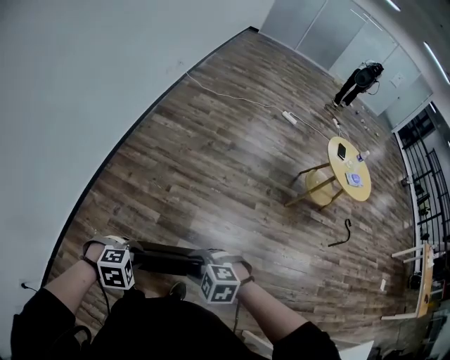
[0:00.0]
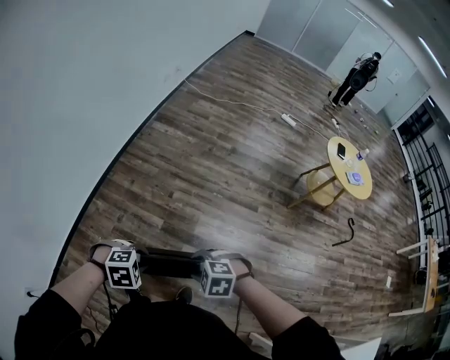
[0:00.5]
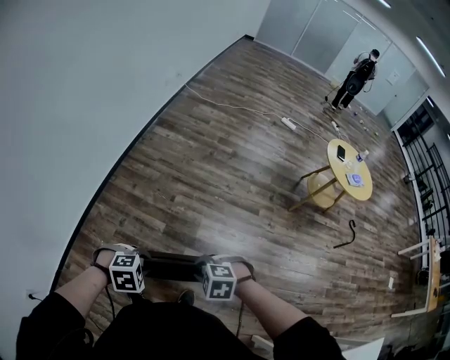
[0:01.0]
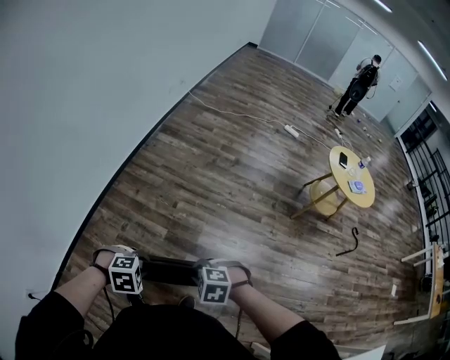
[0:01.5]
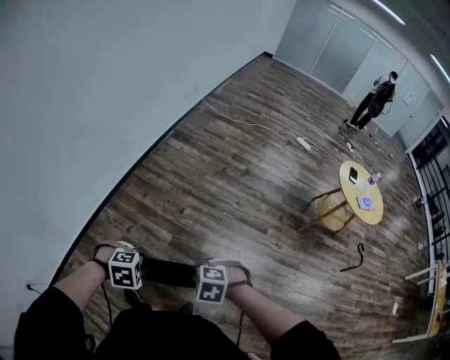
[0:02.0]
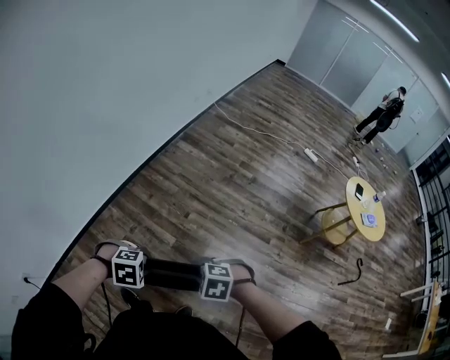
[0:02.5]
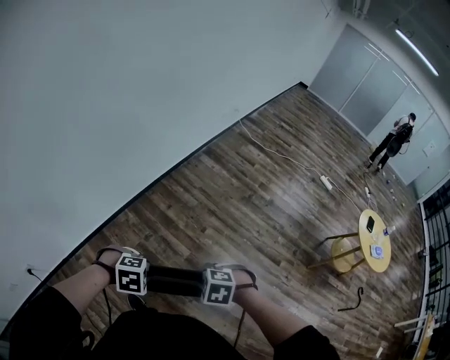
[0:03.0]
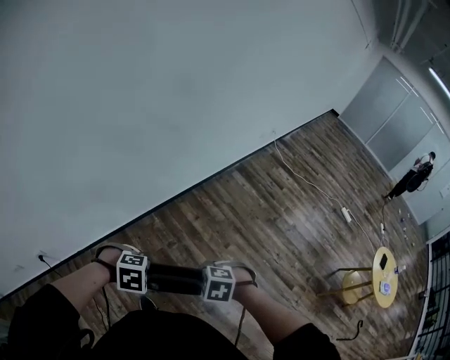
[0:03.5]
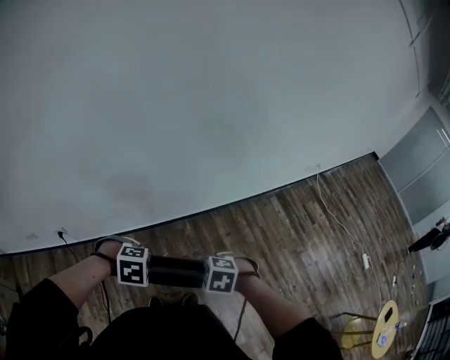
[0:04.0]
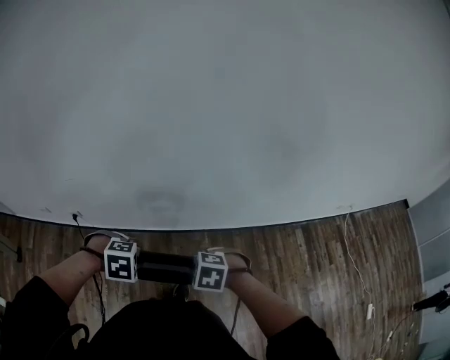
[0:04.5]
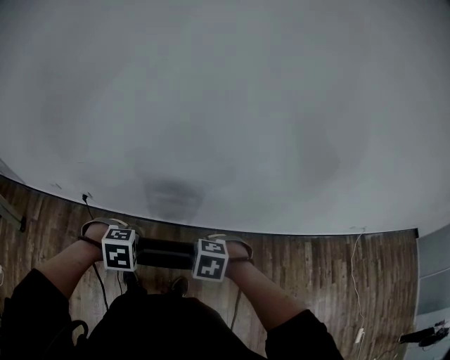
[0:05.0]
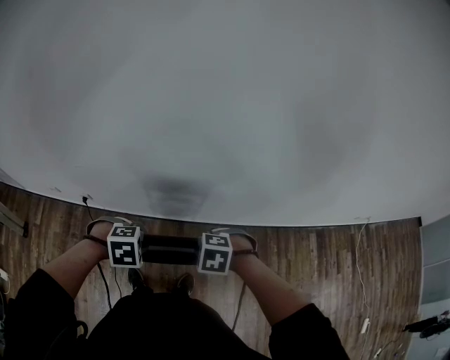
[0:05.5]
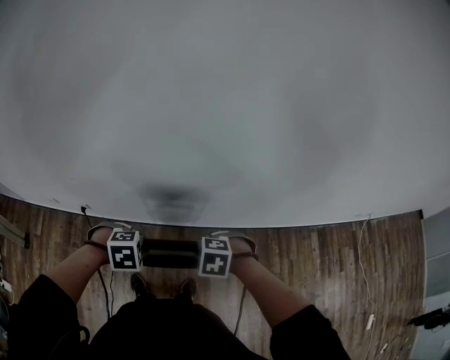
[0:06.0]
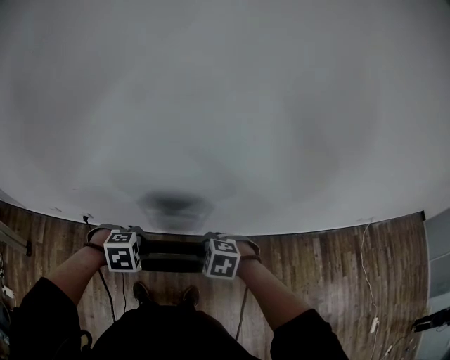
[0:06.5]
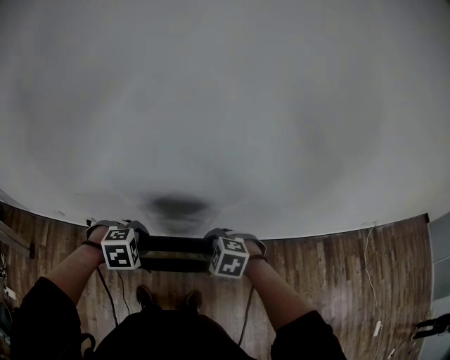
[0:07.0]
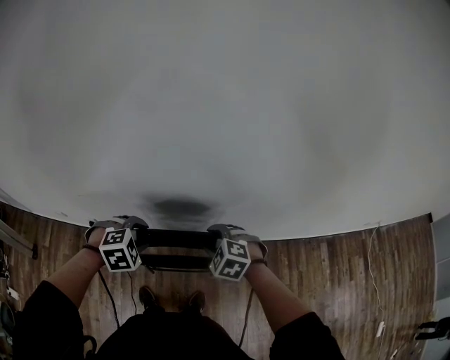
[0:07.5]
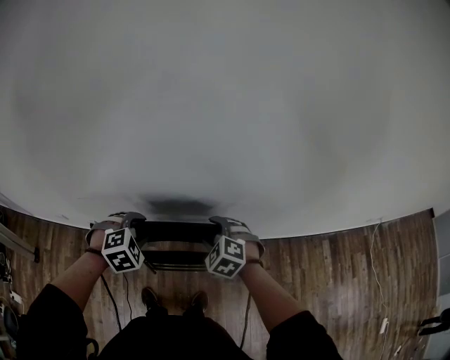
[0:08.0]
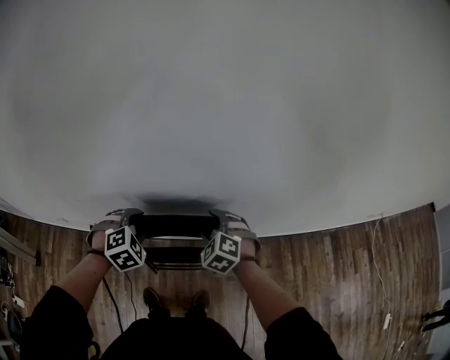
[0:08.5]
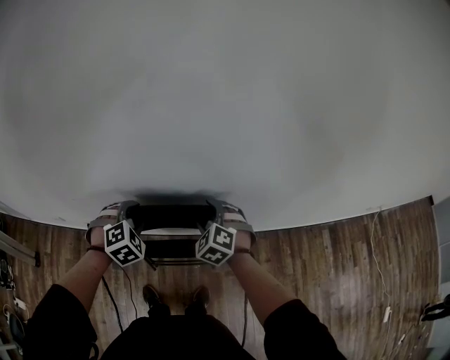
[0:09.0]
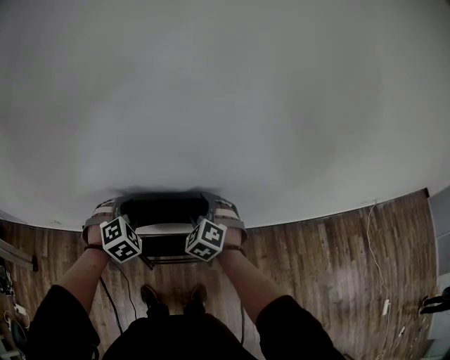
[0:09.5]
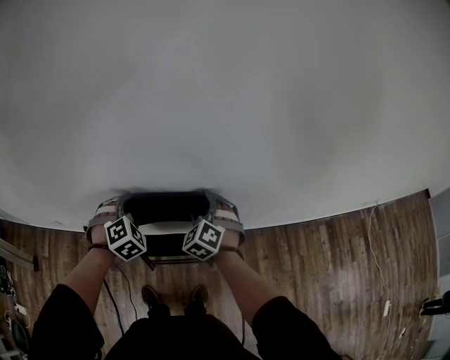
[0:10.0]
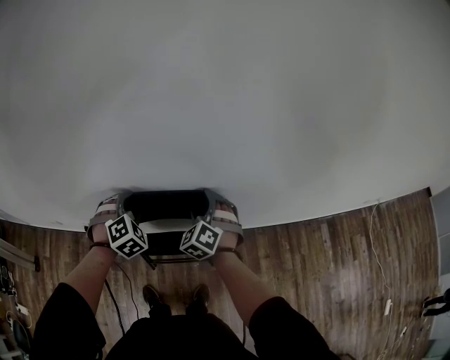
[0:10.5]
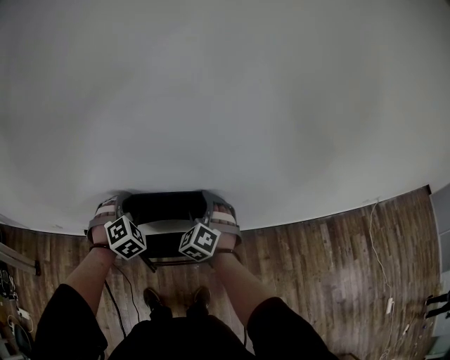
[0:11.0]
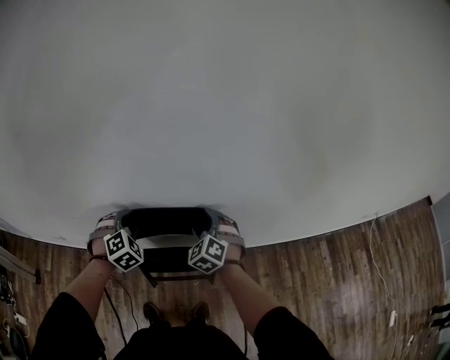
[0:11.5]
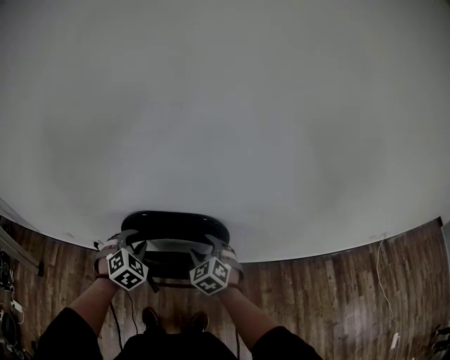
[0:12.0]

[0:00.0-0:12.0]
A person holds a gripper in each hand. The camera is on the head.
0:00.0 to 0:02.0: The right gripper closes.
0:02.0 to 0:04.0: The left gripper changes place by approximately 40 cm, and turns by roughly 40 degrees. Meanwhile the right gripper moves approximately 40 cm, and rotates roughly 40 degrees.
0:04.0 to 0:06.0: The left gripper shifts by roughly 20 cm, and rotates roughly 30 degrees, while the right gripper ends up roughly 25 cm from where it was, and swivels approximately 30 degrees.
0:06.0 to 0:08.0: The left gripper changes place by some 15 cm, swivels about 30 degrees, and opens up. Meanwhile the right gripper changes place by approximately 15 cm, changes its angle by roughly 30 degrees, and opens.
0:08.0 to 0:10.0: Both grippers move forward, about 10 cm. The right gripper turns by roughly 20 degrees.
0:10.0 to 0:12.0: Both grippers travel together backward, about 5 cm.

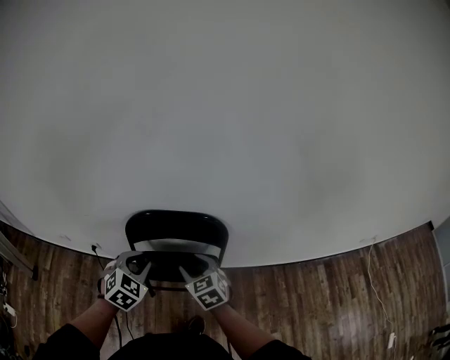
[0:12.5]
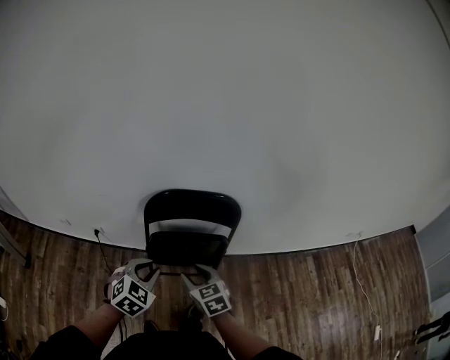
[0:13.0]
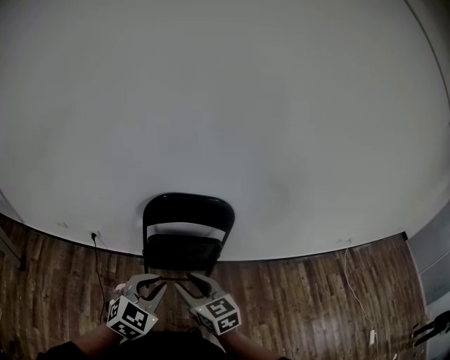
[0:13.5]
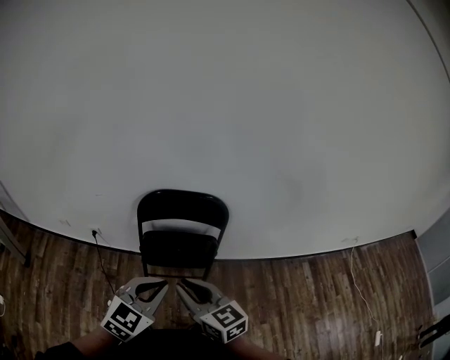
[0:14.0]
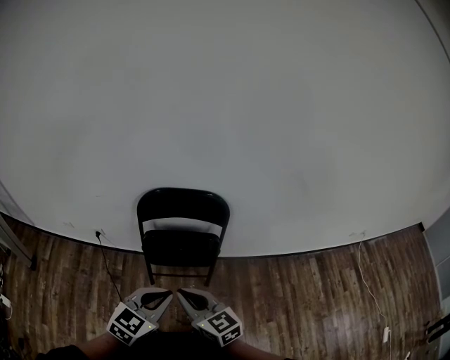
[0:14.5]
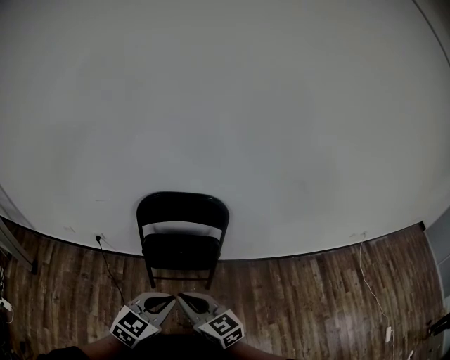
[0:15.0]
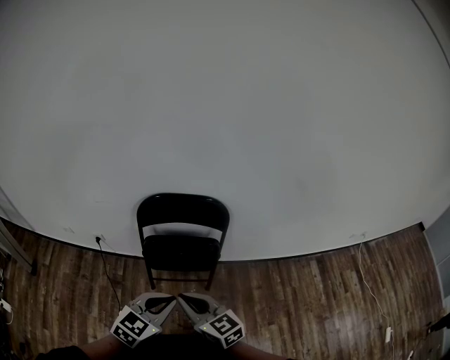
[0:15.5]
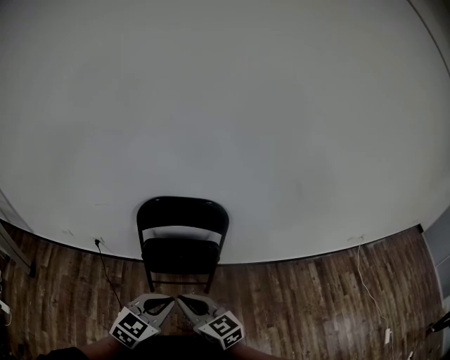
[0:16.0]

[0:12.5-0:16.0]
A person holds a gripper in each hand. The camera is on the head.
0:12.5 to 0:14.5: The grippers both shift backward by some 25 cm. The left gripper turns by approximately 30 degrees; the right gripper changes its angle by approximately 30 degrees, and closes up.
0:14.5 to 0:16.0: Neither gripper changes place.

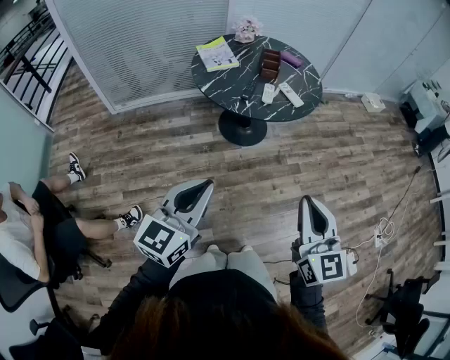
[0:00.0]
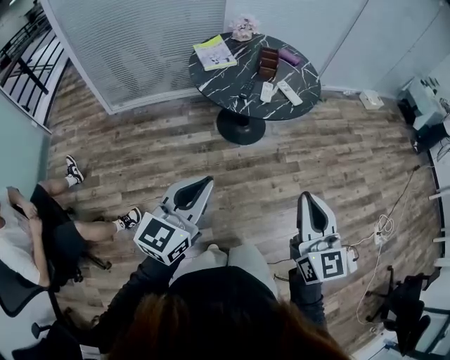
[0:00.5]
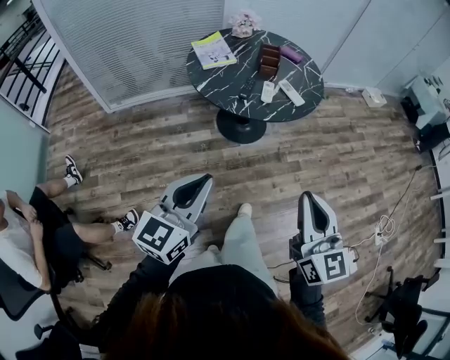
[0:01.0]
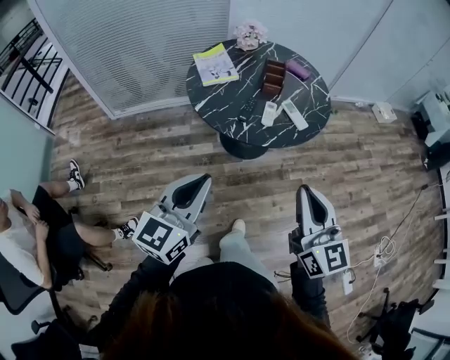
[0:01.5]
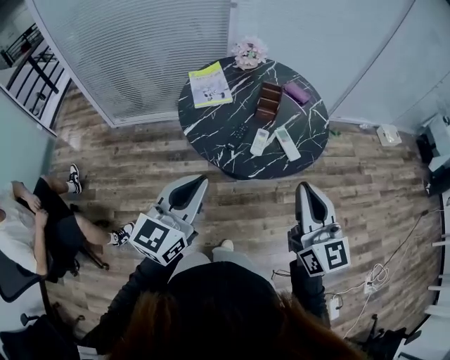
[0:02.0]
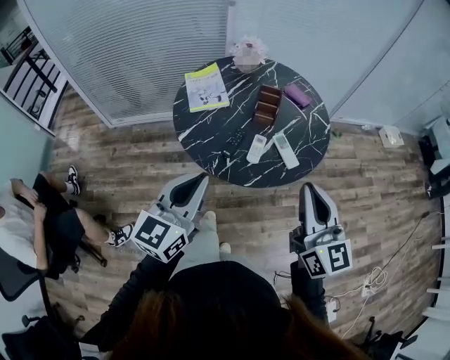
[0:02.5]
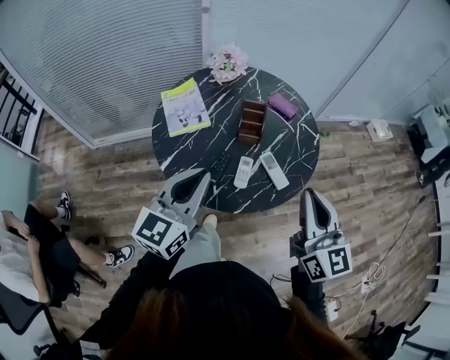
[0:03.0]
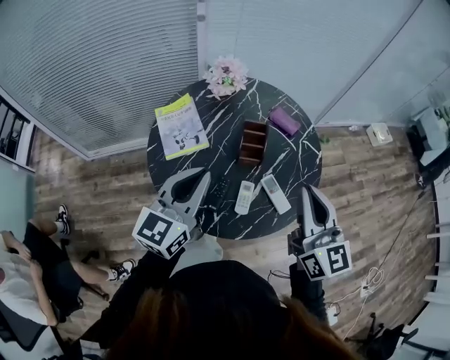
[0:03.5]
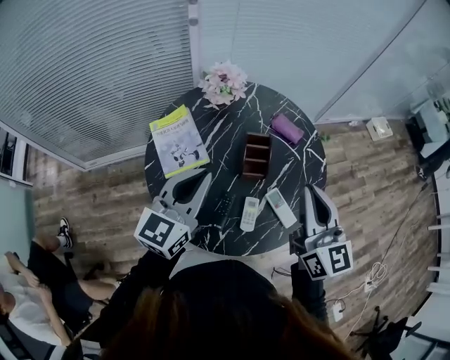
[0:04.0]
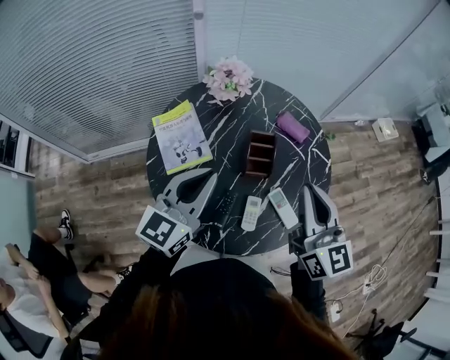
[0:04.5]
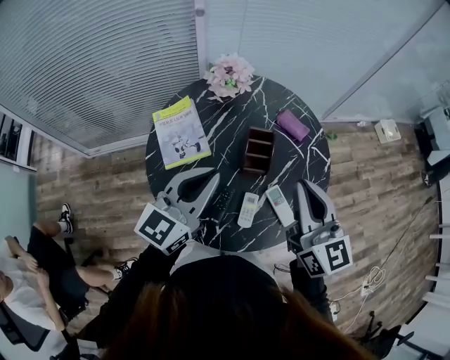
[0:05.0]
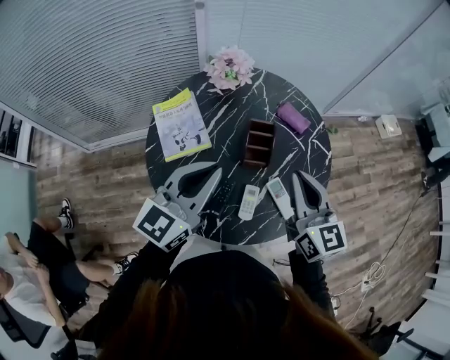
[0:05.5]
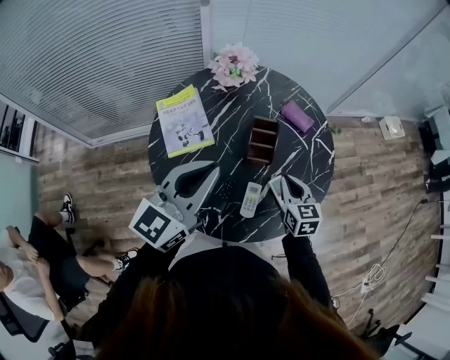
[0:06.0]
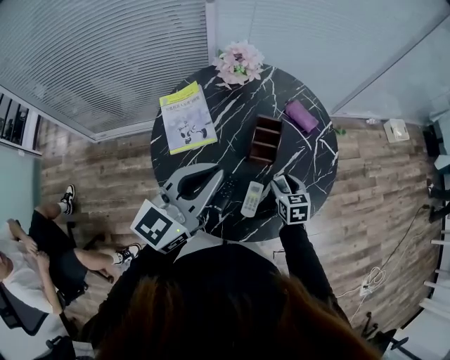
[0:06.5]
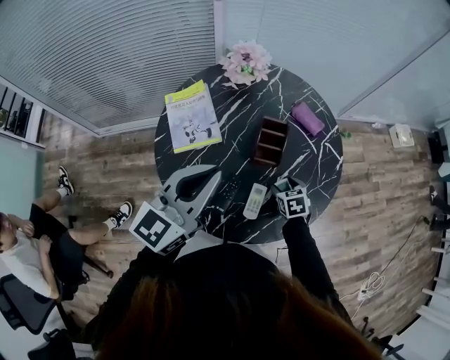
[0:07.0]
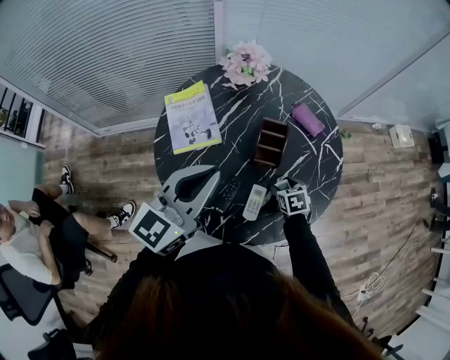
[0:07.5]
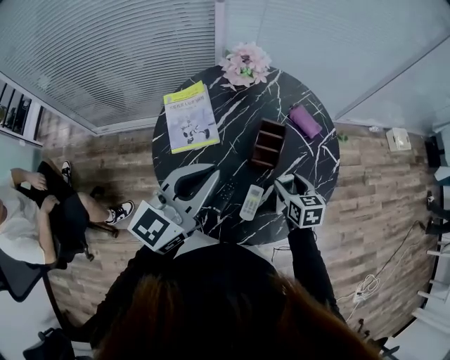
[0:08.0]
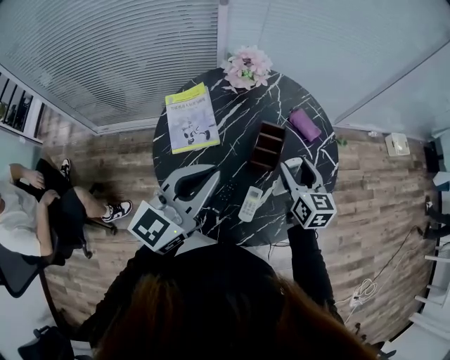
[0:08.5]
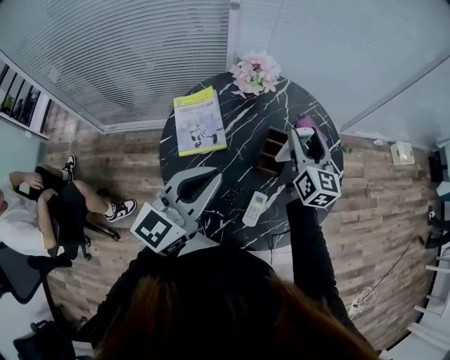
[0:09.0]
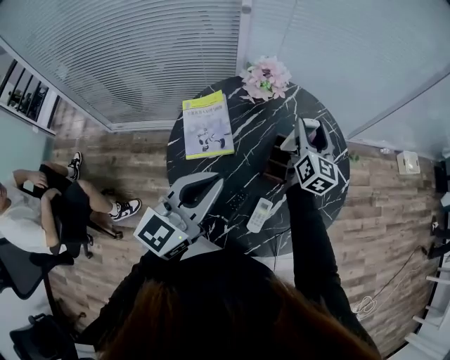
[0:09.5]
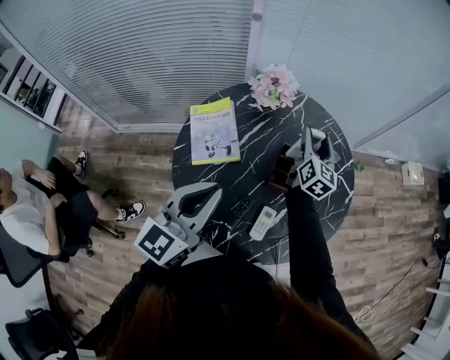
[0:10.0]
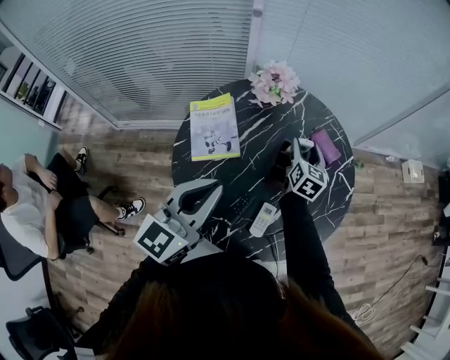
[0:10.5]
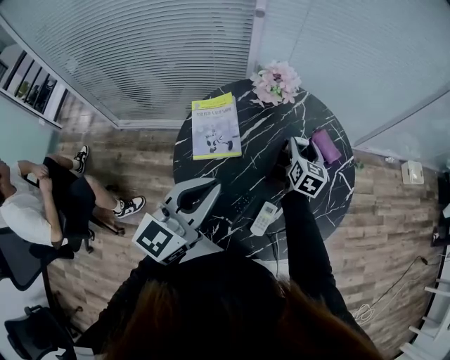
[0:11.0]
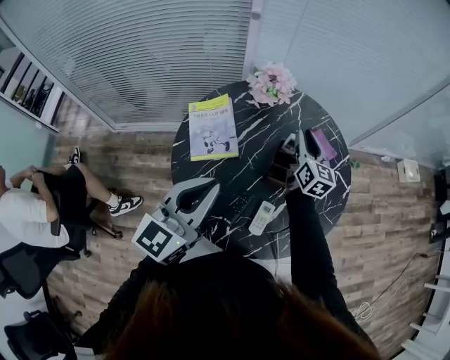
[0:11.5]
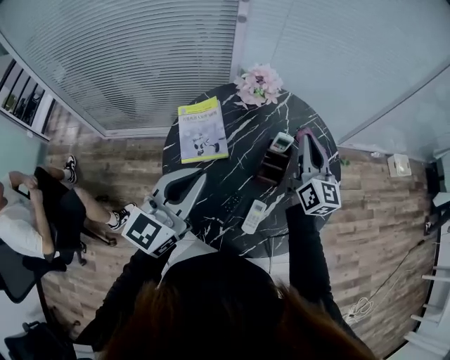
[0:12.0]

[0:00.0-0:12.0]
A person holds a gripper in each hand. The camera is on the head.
0:00.0 to 0:02.0: The two grippers go approximately 30 cm forward.
0:02.0 to 0:04.0: The two grippers go approximately 35 cm forward.
0:04.0 to 0:06.0: The right gripper travels downward by roughly 25 cm, and points its fingers roughly 30 degrees further downward.
0:06.0 to 0:08.0: The right gripper moves some 15 cm downward and comes back, and opens.
0:08.0 to 0:10.0: The right gripper goes approximately 25 cm forward and upward, and points its fingers some 40 degrees further upward.
0:10.0 to 0:12.0: The right gripper moves backward and upward, approximately 10 cm, and closes its fingers.
